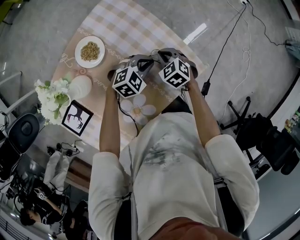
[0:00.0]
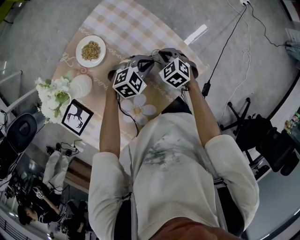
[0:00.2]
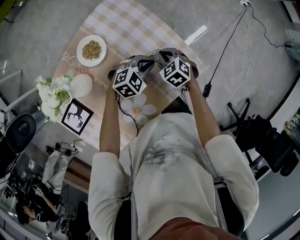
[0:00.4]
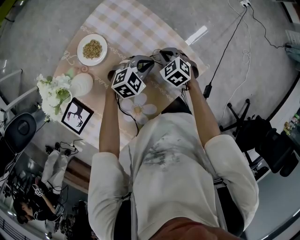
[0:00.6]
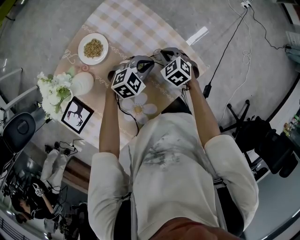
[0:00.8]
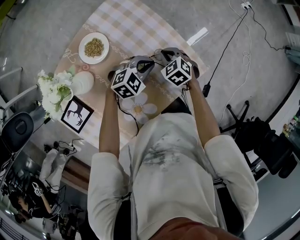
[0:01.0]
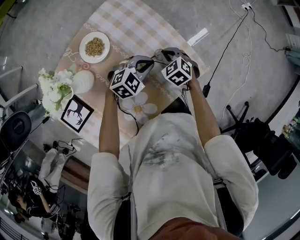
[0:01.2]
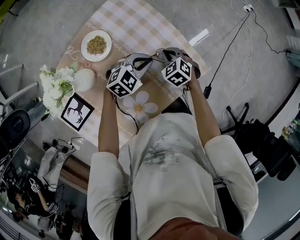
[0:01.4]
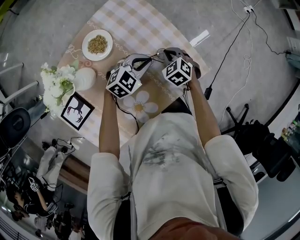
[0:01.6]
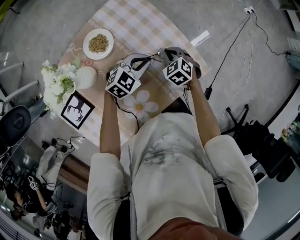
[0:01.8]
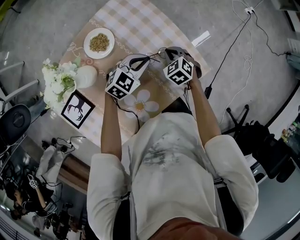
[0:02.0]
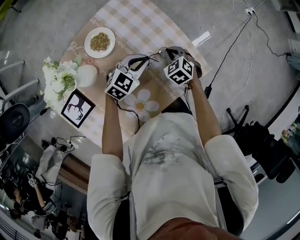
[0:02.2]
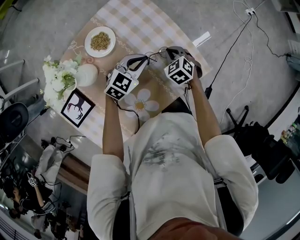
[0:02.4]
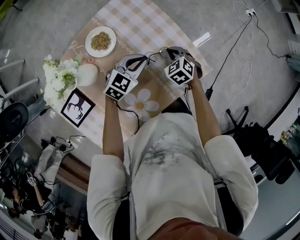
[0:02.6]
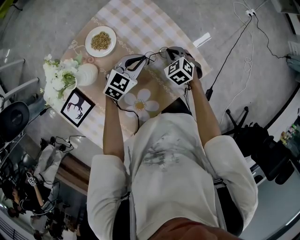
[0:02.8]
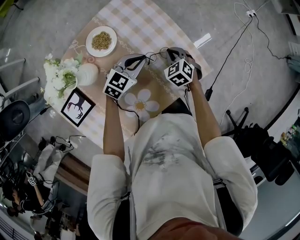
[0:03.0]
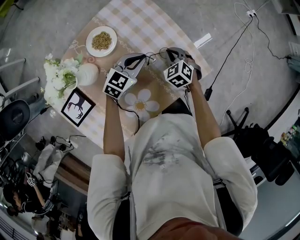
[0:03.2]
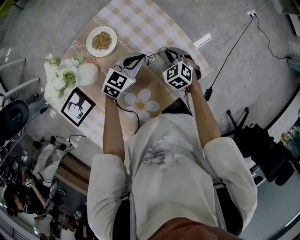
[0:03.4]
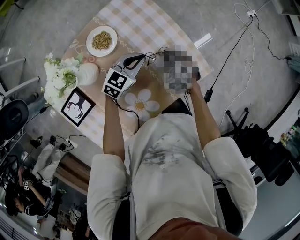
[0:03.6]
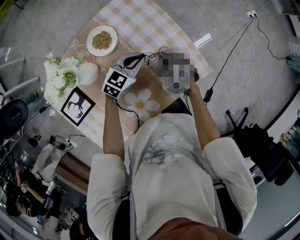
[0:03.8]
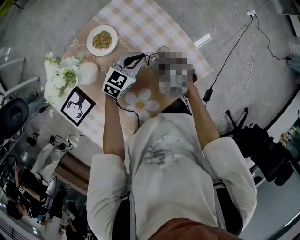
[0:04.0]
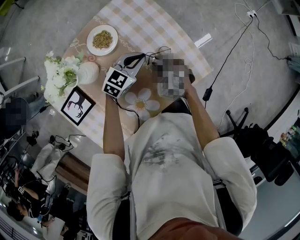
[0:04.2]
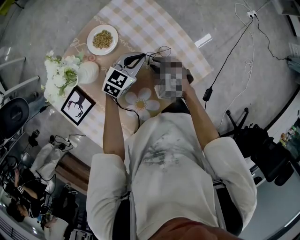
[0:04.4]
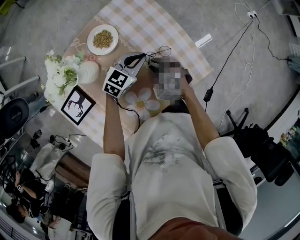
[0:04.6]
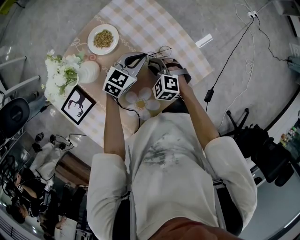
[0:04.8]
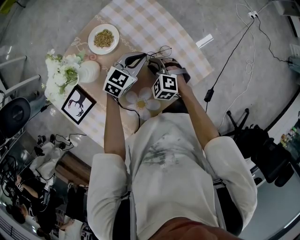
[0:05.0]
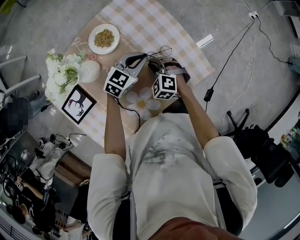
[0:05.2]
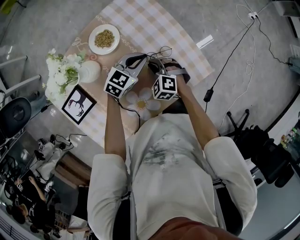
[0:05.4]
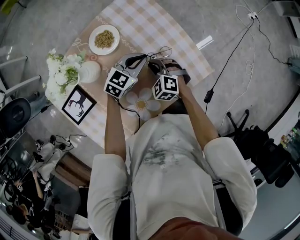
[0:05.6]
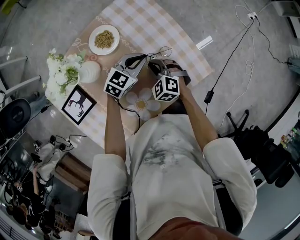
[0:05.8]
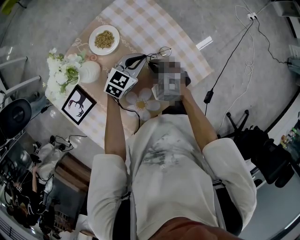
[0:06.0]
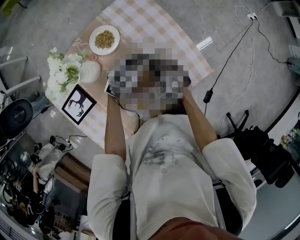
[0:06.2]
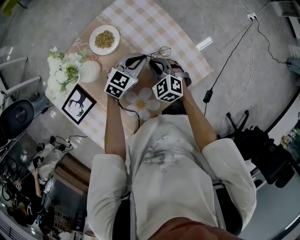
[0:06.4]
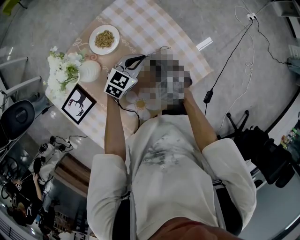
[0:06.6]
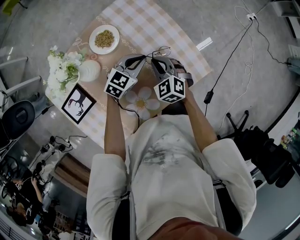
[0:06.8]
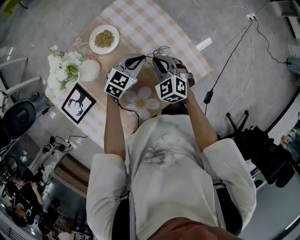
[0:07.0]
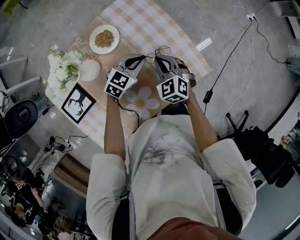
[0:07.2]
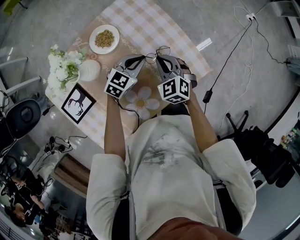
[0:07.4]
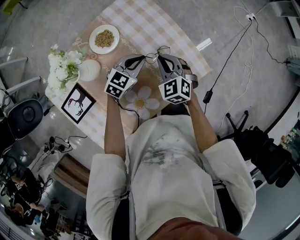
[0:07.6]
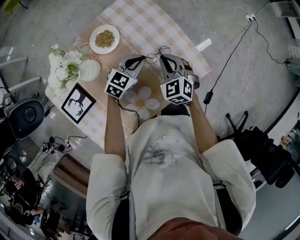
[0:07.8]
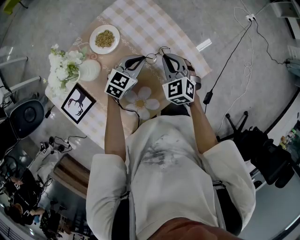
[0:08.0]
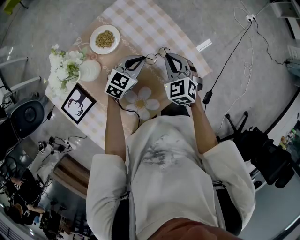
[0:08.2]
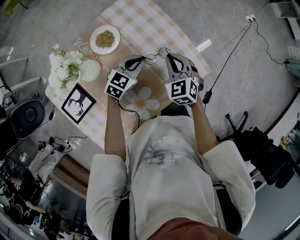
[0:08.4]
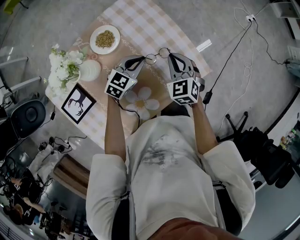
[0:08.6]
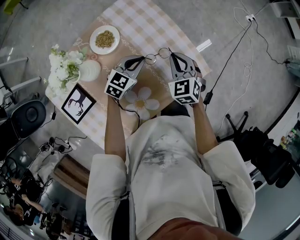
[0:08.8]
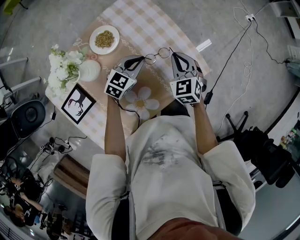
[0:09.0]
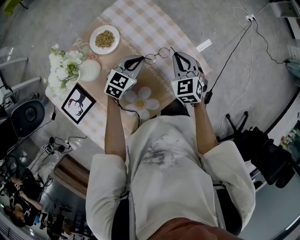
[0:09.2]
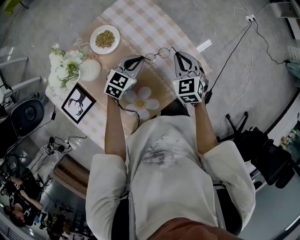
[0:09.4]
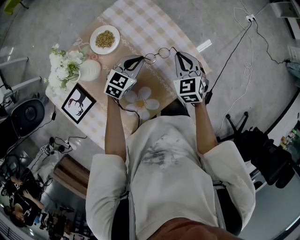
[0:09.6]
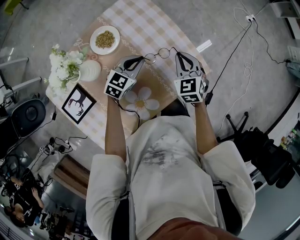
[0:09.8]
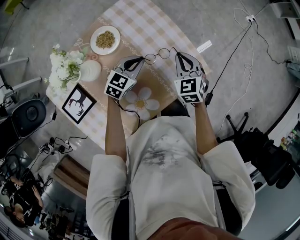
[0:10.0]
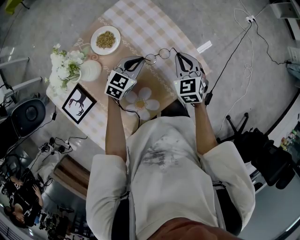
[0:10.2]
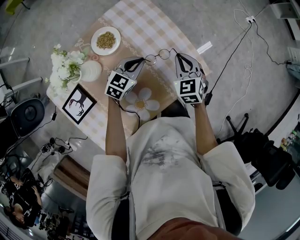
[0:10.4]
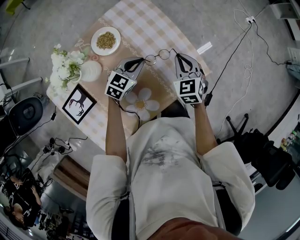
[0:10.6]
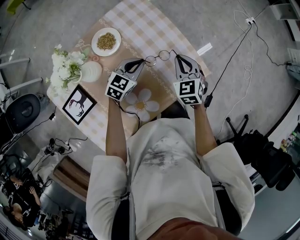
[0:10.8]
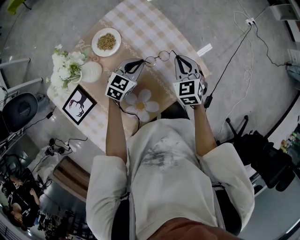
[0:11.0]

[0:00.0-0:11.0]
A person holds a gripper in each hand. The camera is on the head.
0:00.0 to 0:01.6: The left gripper ends up about 5 cm from where it was.
0:01.6 to 0:03.2: The grippers stay close to where they were, moving slightly.
0:03.2 to 0:04.8: The right gripper shifts roughly 10 cm backward and to the left, turns by some 20 degrees, and opens up.
0:04.8 to 0:06.2: There are only small adjustments of the grippers.
0:06.2 to 0:07.8: The right gripper moves upward, some 5 cm.
0:07.8 to 0:09.4: The right gripper moves to the right, about 5 cm.
0:09.4 to 0:11.0: Neither gripper changes place.

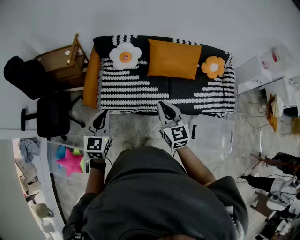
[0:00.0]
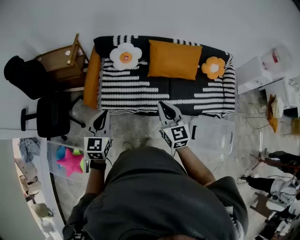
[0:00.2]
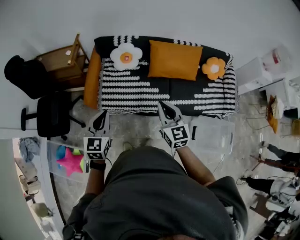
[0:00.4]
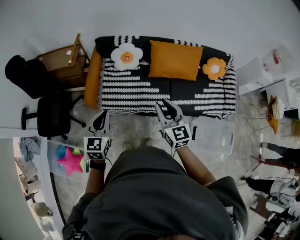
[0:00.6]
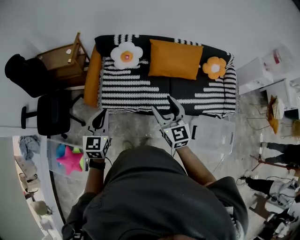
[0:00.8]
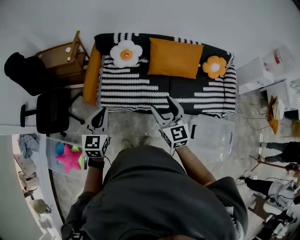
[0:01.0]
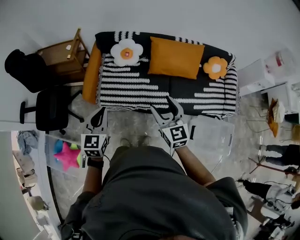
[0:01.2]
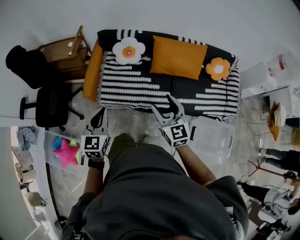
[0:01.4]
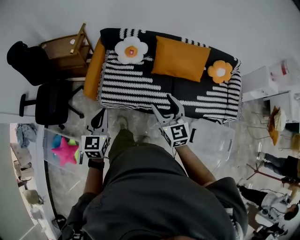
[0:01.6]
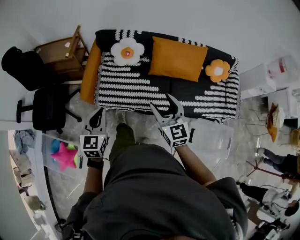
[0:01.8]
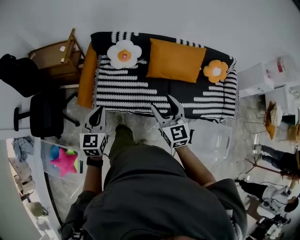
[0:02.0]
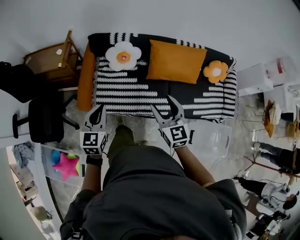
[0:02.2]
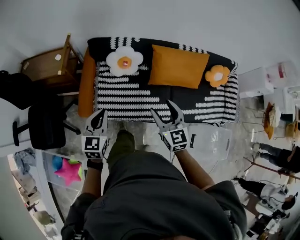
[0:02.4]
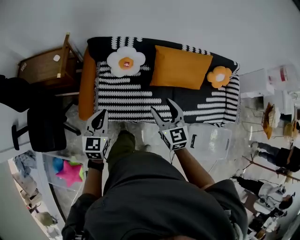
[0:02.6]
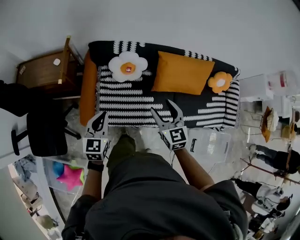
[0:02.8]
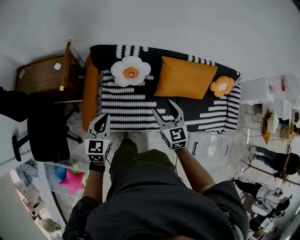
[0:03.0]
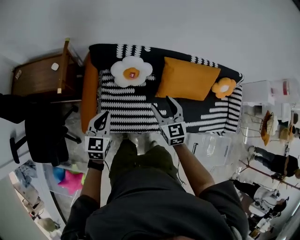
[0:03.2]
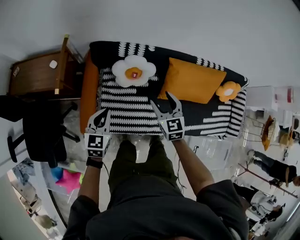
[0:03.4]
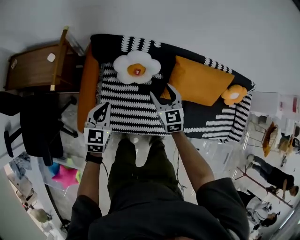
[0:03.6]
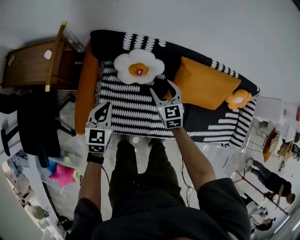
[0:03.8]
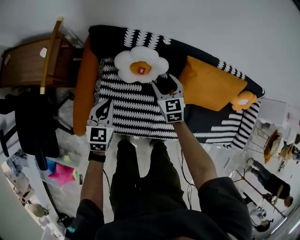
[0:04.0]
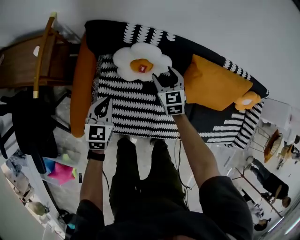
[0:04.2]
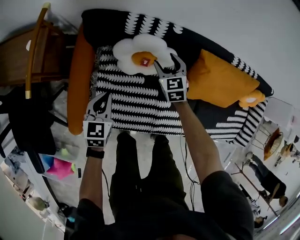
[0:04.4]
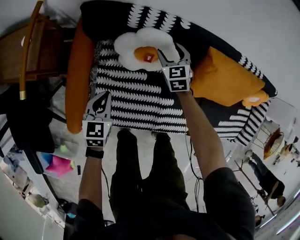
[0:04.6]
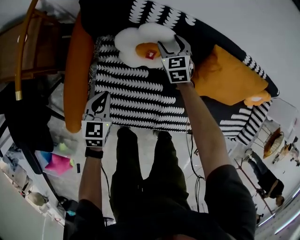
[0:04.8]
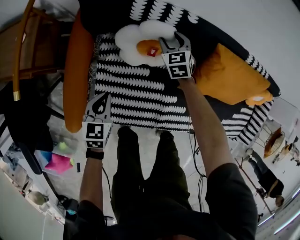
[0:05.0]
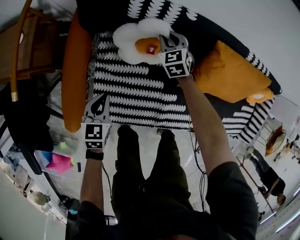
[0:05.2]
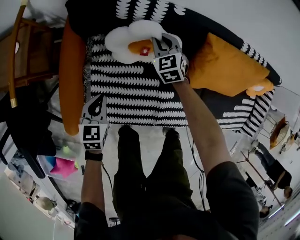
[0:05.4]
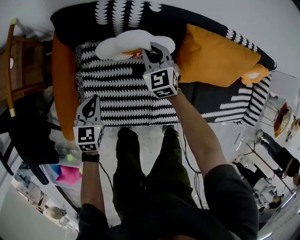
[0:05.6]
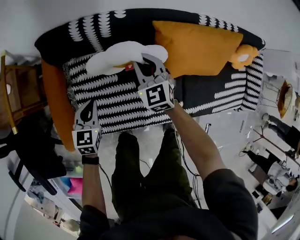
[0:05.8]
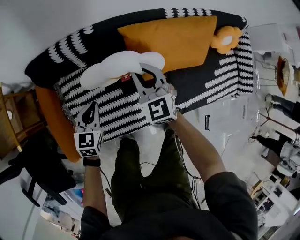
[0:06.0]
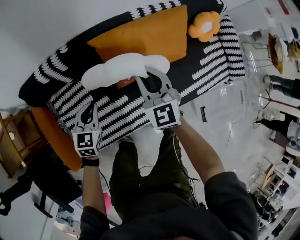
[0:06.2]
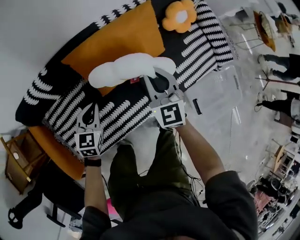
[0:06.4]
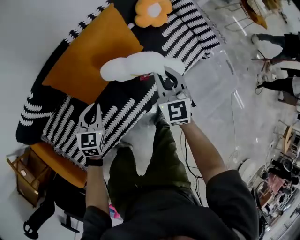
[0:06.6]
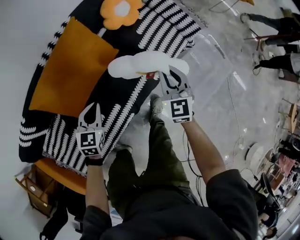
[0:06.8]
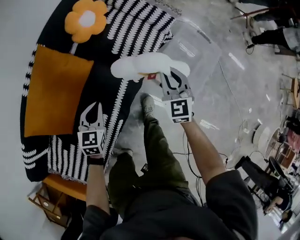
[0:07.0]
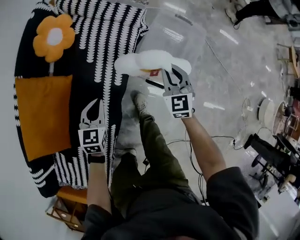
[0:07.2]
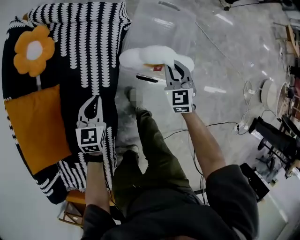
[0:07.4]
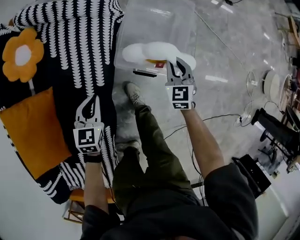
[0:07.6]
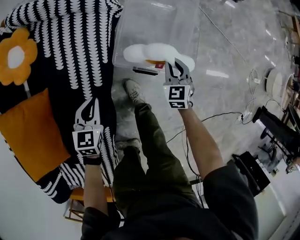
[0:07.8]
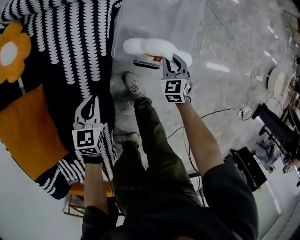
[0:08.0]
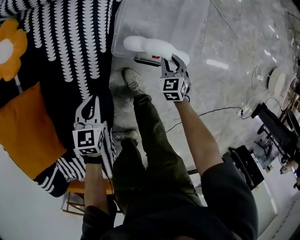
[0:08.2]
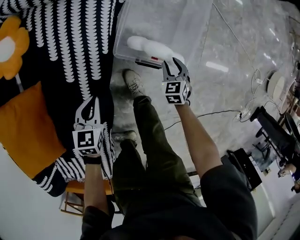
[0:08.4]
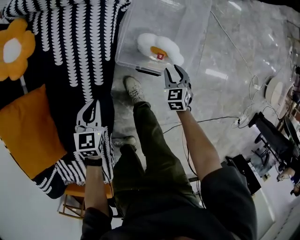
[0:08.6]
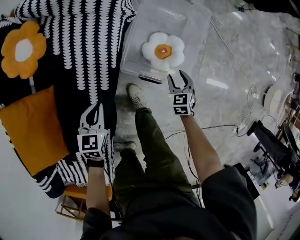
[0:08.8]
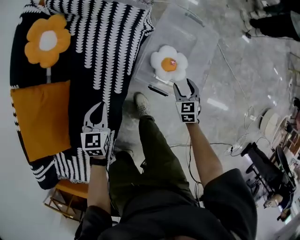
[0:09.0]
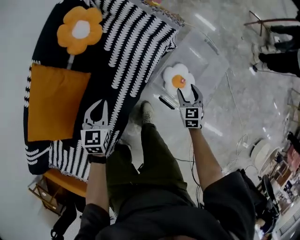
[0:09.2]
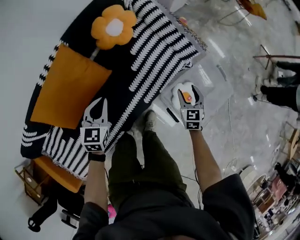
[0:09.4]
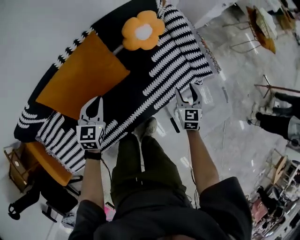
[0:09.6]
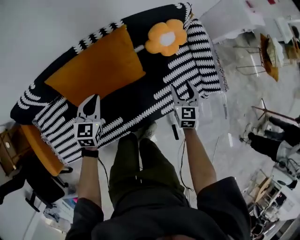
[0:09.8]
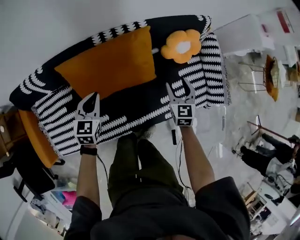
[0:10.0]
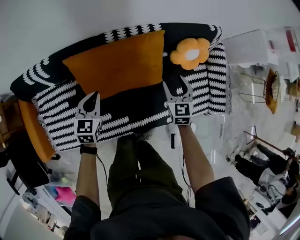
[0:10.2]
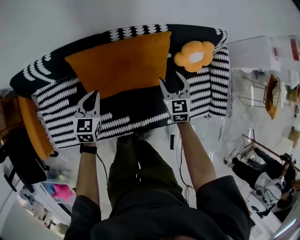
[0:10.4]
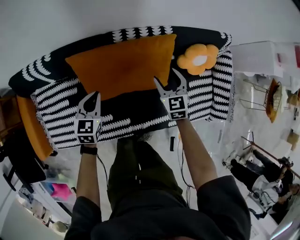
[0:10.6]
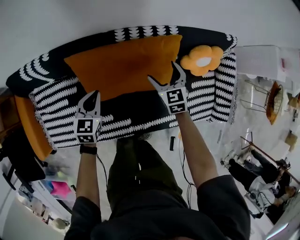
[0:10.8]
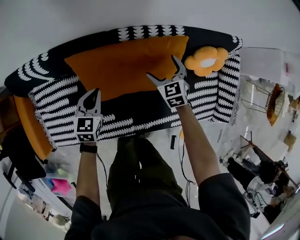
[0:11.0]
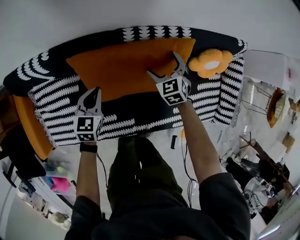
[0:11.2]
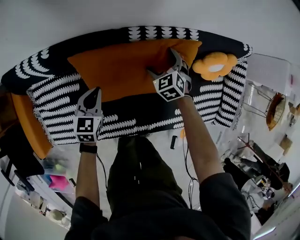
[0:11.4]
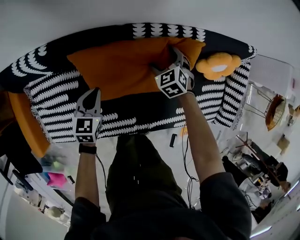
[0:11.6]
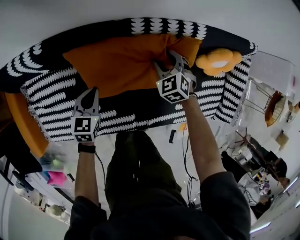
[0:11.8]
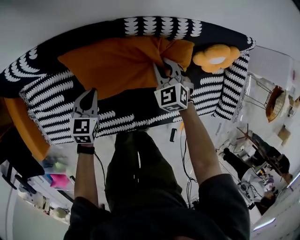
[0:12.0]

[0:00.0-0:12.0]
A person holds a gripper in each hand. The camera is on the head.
0:00.0 to 0:01.6: The right gripper opens.
0:01.6 to 0:03.0: The two grippers go some 30 cm forward.
0:03.0 to 0:04.4: Both grippers travel together downward and forward, approximately 40 cm.
0:04.4 to 0:06.0: The right gripper shifts some 25 cm to the right, upward and backward, and closes. The left gripper is displaced to the right by about 15 cm.
0:06.0 to 0:07.6: The two grippers travel together, about 90 cm. The left gripper changes its angle by about 70 degrees. Meanwhile the right gripper rotates about 90 degrees.
0:07.6 to 0:09.0: The left gripper goes downward and returns, approximately 10 cm each way, while the right gripper goes downward and returns, about 20 cm each way, and opens its fingers.
0:09.0 to 0:10.4: The pair of grippers is taken roughly 60 cm. The left gripper changes its angle by about 60 degrees. Meanwhile the right gripper turns by some 70 degrees.
0:10.4 to 0:12.0: Both grippers travel together downward, to the left and forward, roughly 20 cm. The right gripper swivels some 30 degrees, and closes its fingers.

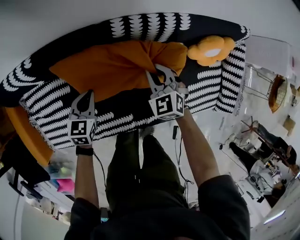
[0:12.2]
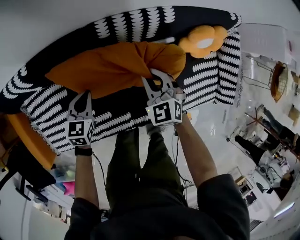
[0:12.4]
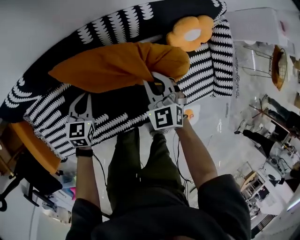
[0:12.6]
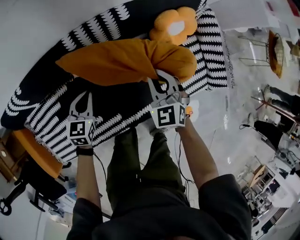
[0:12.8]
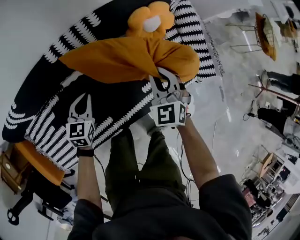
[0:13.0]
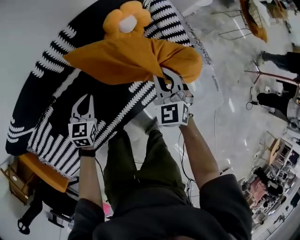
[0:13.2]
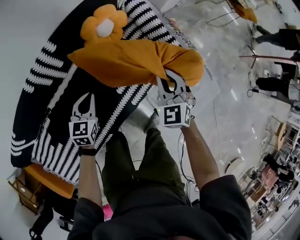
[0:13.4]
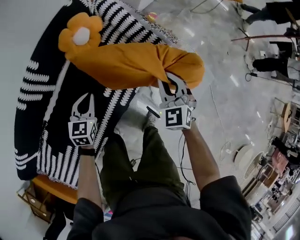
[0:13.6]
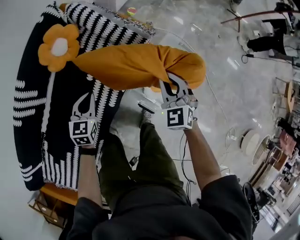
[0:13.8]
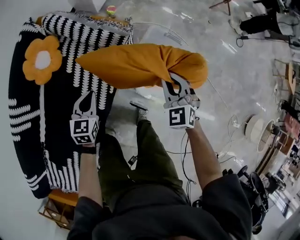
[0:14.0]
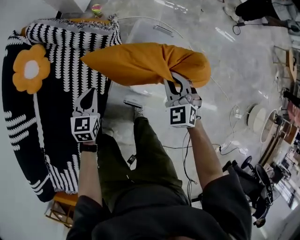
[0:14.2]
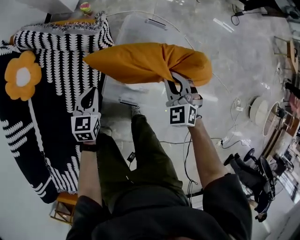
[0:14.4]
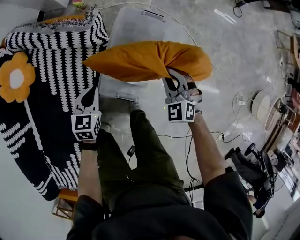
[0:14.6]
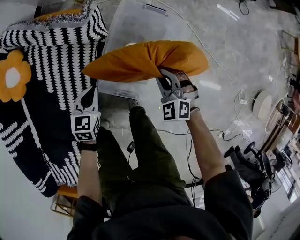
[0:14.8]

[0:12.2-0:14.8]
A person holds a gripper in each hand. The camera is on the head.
0:12.2 to 0:13.4: Both grippers are carried approximately 50 cm. The left gripper turns by some 30 degrees; the right gripper rotates about 50 degrees.
0:13.4 to 0:14.8: The two grippers travel together, about 50 cm. The left gripper swivels approximately 40 degrees, while the right gripper swivels about 20 degrees.
